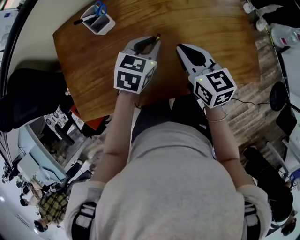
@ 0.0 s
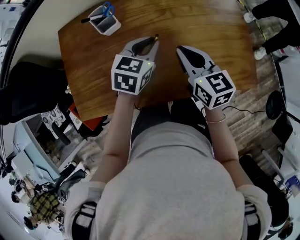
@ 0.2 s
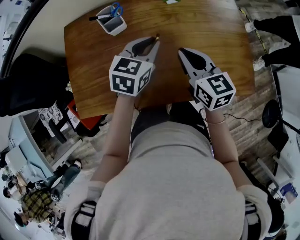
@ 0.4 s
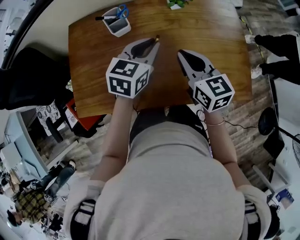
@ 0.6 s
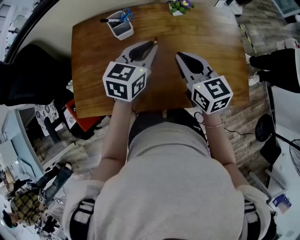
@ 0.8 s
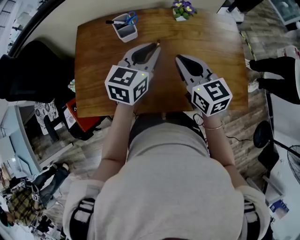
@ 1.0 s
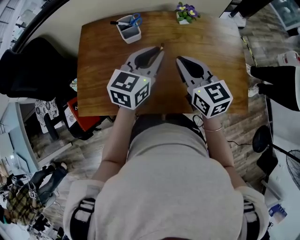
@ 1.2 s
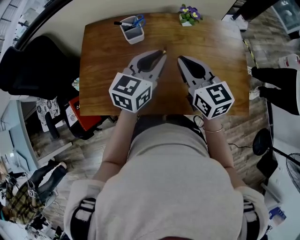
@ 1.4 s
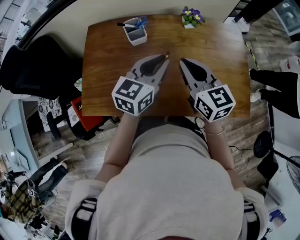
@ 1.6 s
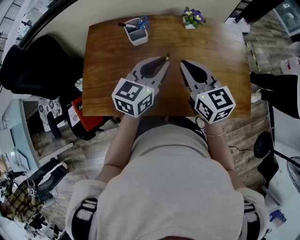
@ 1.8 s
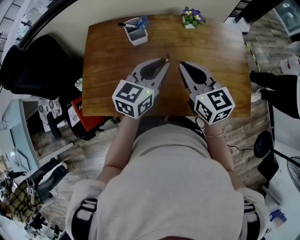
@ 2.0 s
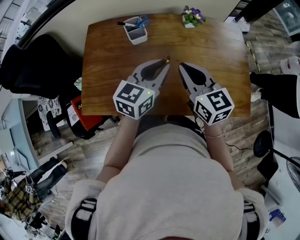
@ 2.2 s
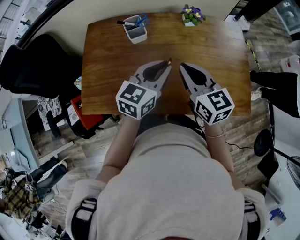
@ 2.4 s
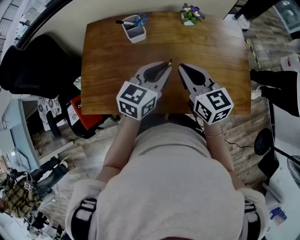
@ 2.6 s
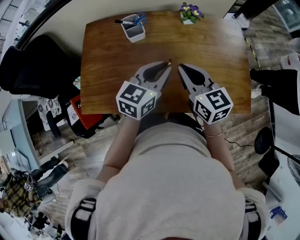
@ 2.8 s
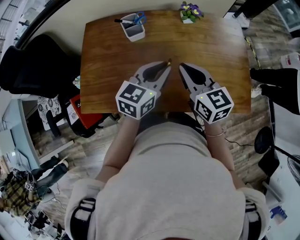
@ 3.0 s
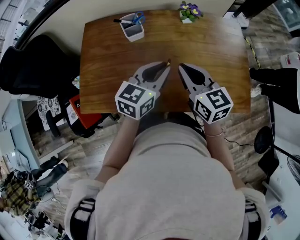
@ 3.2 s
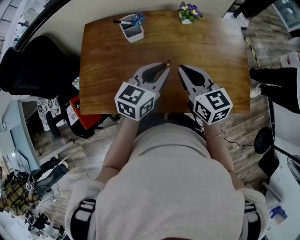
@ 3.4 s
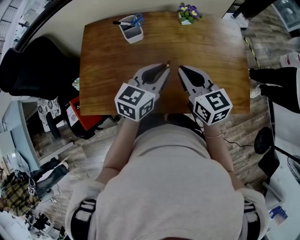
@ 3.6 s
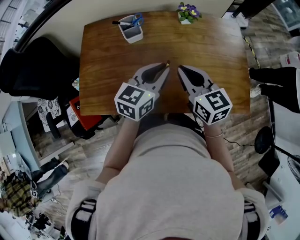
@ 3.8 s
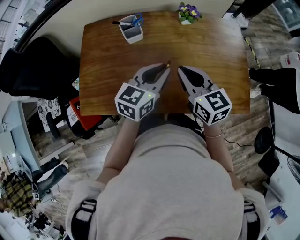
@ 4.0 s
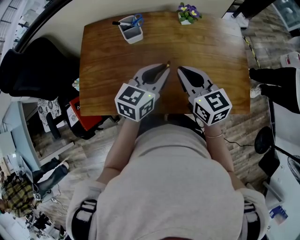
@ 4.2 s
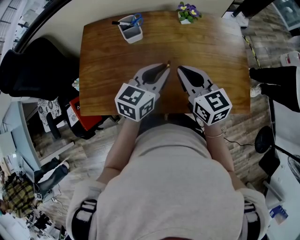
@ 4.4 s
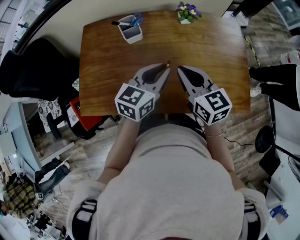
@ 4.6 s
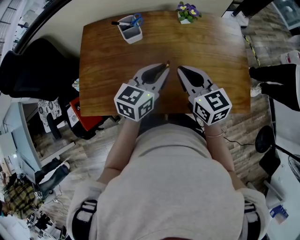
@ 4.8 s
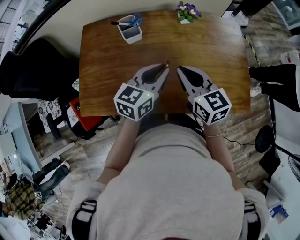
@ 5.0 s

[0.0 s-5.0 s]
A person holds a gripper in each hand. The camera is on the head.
0.0 to 1.6 s: The grippers both shift upward and to the left by approximately 15 cm. The left gripper turns by some 30 degrees.
1.6 to 3.4 s: The grippers move only a little.
3.4 to 5.0 s: Neither gripper changes place.

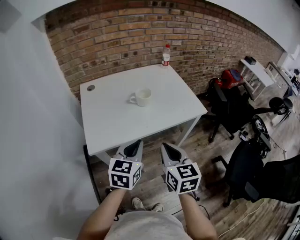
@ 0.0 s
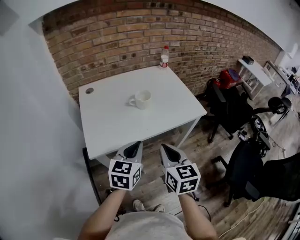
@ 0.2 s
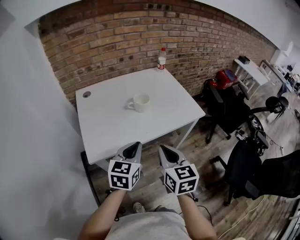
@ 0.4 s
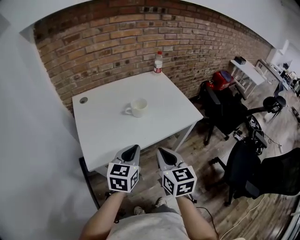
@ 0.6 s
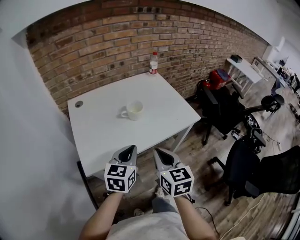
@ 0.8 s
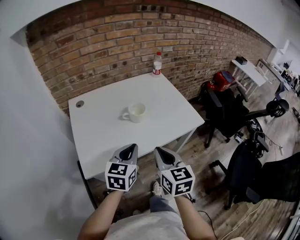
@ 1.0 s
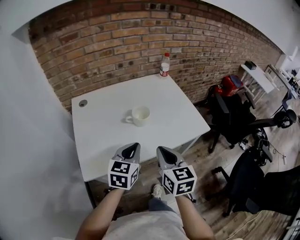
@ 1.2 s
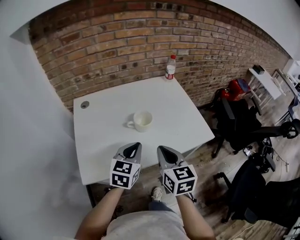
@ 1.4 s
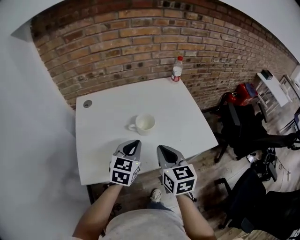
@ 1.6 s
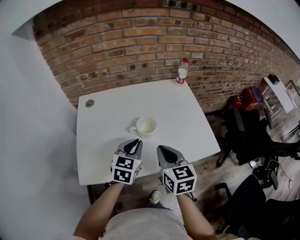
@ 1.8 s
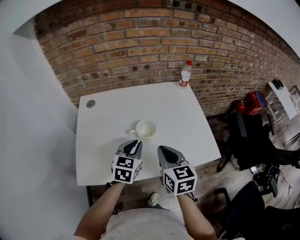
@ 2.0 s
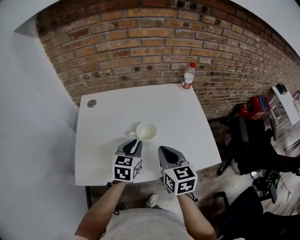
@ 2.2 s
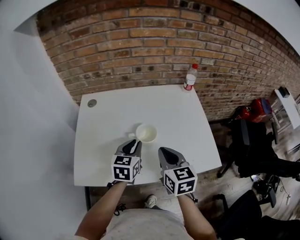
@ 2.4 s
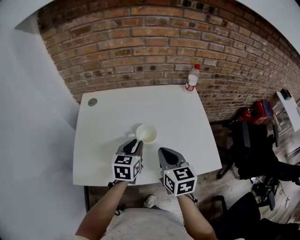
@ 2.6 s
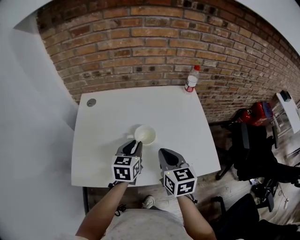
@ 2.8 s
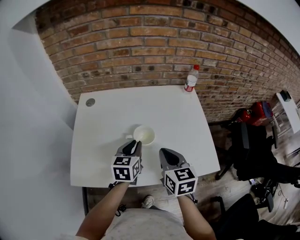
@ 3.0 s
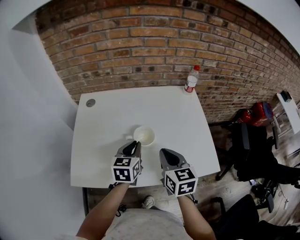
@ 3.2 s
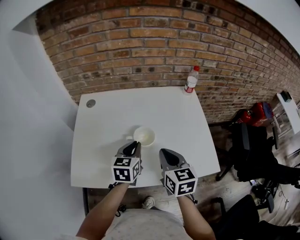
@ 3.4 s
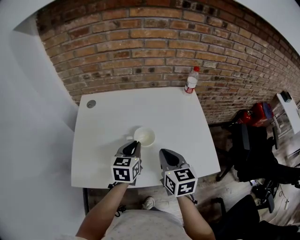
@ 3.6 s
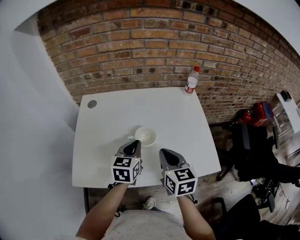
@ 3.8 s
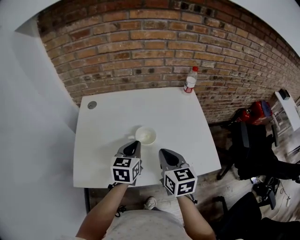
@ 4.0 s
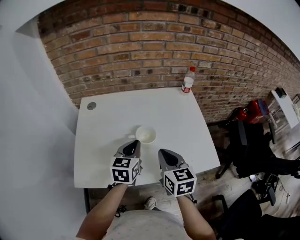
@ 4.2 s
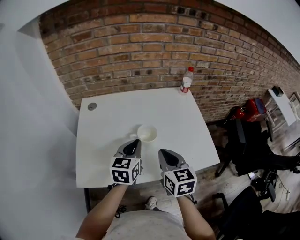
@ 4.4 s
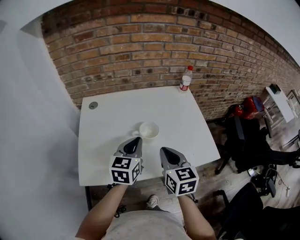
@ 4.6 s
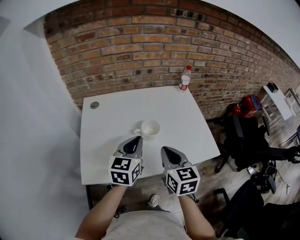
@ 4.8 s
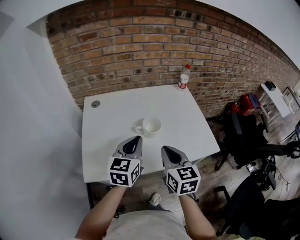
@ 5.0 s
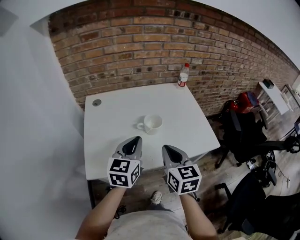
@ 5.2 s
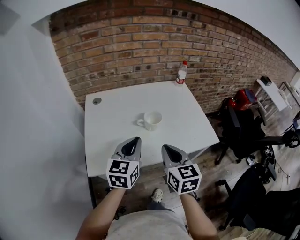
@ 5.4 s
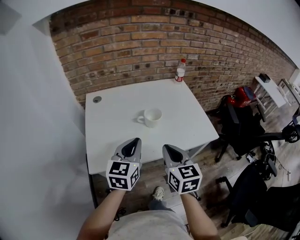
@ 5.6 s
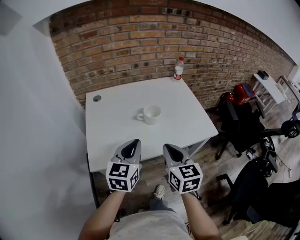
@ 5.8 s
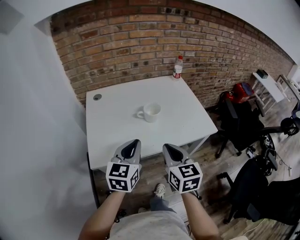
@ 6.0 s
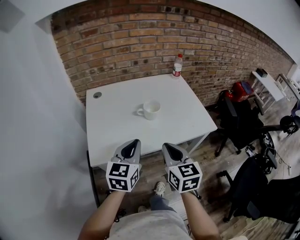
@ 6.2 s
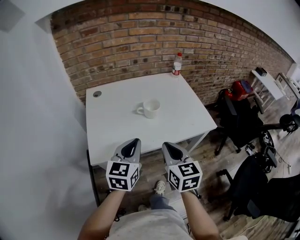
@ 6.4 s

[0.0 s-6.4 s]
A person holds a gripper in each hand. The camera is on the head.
0.0 to 1.6 s: Both grippers move forward, approximately 25 cm.
1.6 to 3.2 s: Both grippers move forward, approximately 10 cm. The left gripper turns by roughly 30 degrees.
3.2 to 4.8 s: The right gripper moves backward, to the left and upward, approximately 10 cm. Meanwhile the left gripper is displaced upward and backward by roughly 15 cm.
4.8 to 6.4 s: The grippers both shift backward by some 15 cm.

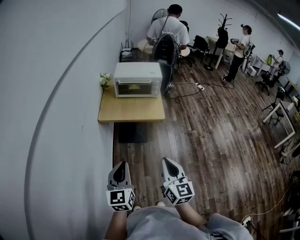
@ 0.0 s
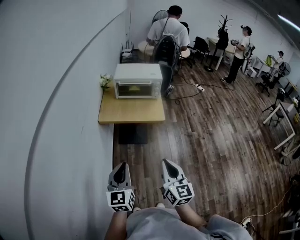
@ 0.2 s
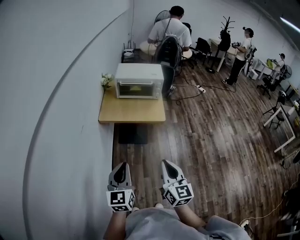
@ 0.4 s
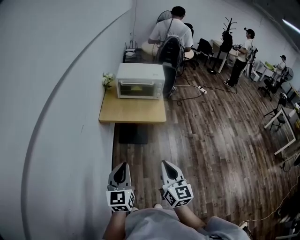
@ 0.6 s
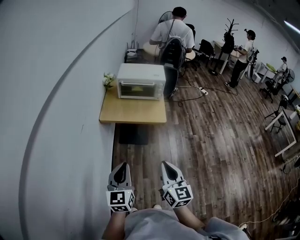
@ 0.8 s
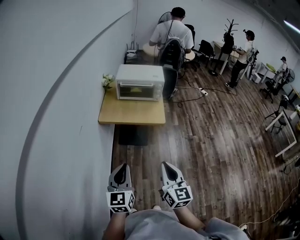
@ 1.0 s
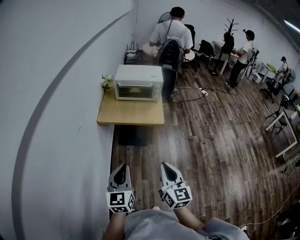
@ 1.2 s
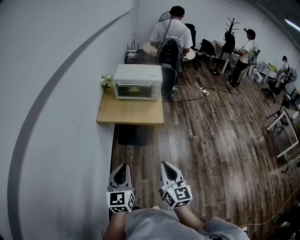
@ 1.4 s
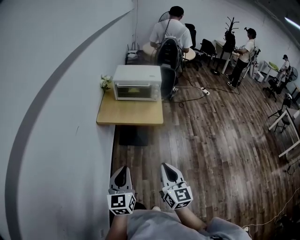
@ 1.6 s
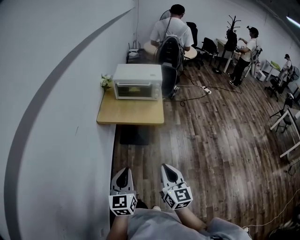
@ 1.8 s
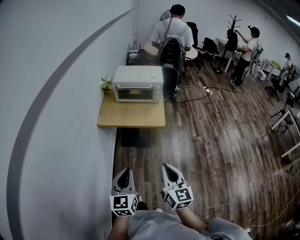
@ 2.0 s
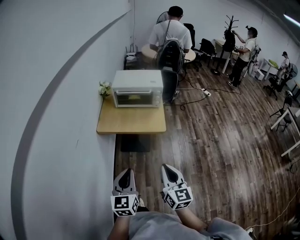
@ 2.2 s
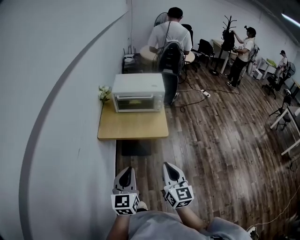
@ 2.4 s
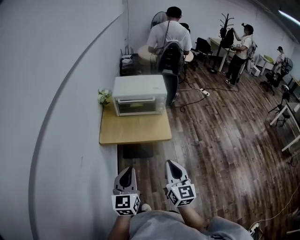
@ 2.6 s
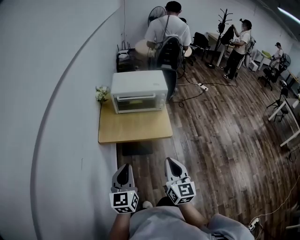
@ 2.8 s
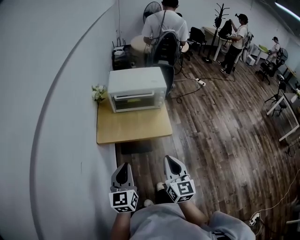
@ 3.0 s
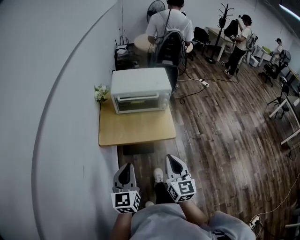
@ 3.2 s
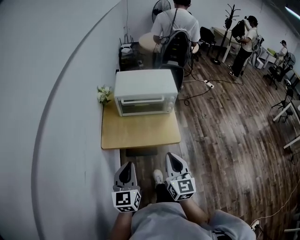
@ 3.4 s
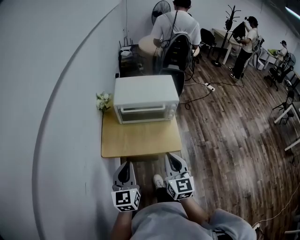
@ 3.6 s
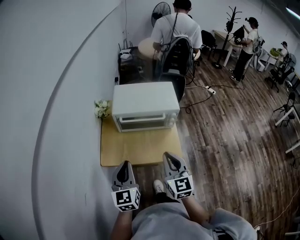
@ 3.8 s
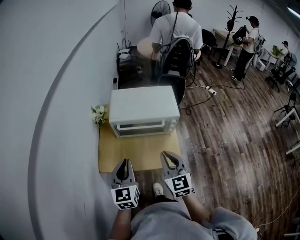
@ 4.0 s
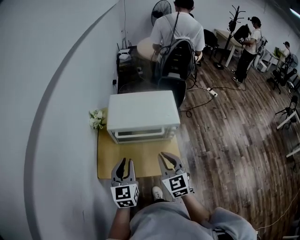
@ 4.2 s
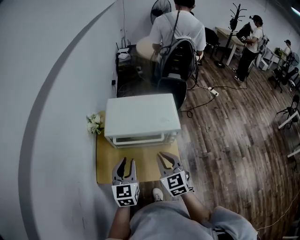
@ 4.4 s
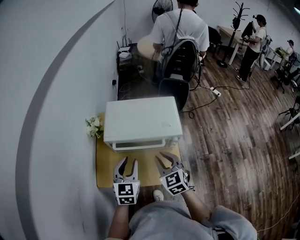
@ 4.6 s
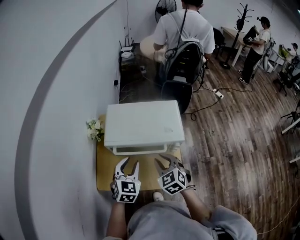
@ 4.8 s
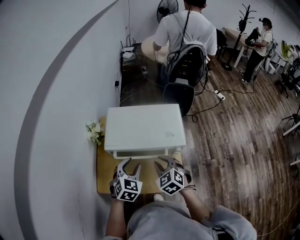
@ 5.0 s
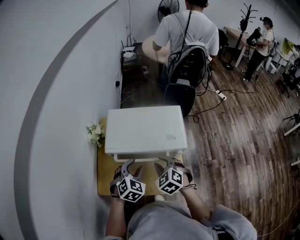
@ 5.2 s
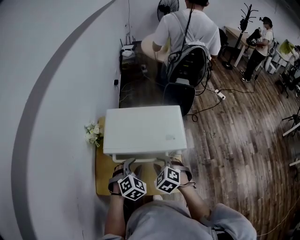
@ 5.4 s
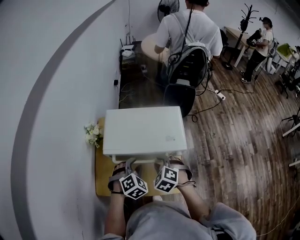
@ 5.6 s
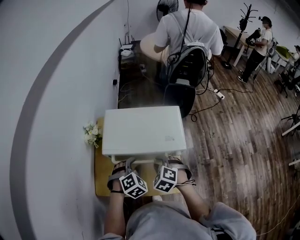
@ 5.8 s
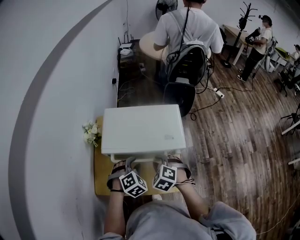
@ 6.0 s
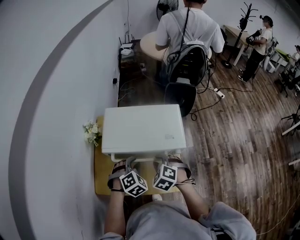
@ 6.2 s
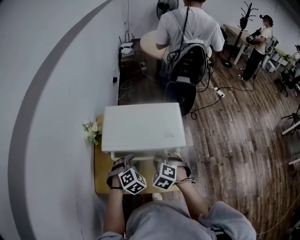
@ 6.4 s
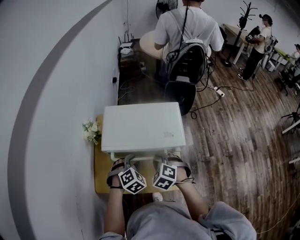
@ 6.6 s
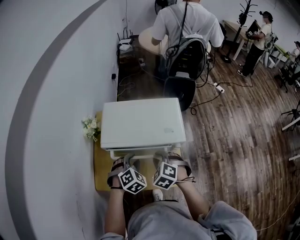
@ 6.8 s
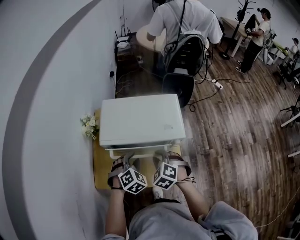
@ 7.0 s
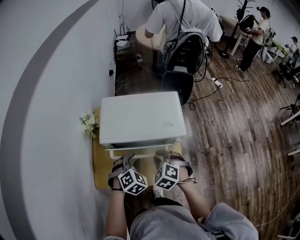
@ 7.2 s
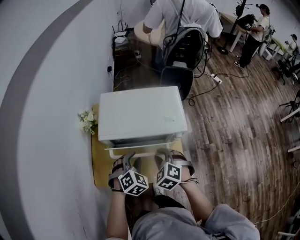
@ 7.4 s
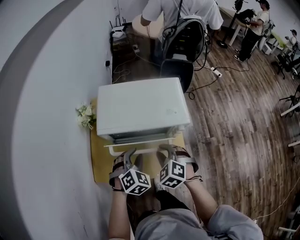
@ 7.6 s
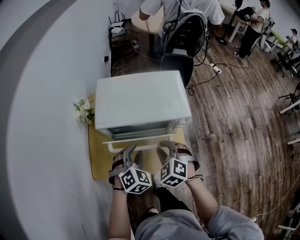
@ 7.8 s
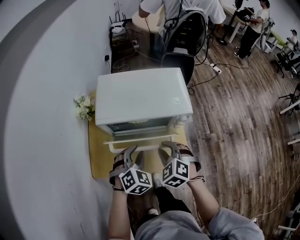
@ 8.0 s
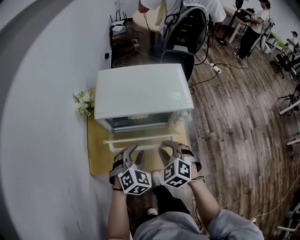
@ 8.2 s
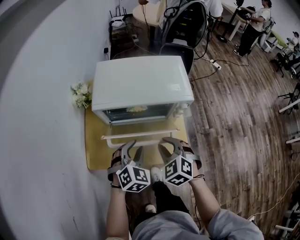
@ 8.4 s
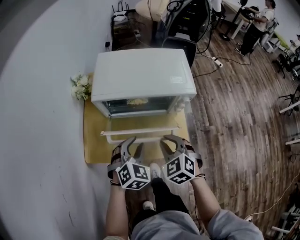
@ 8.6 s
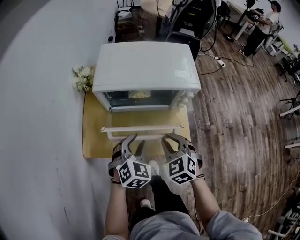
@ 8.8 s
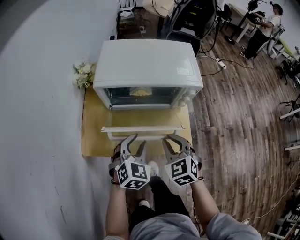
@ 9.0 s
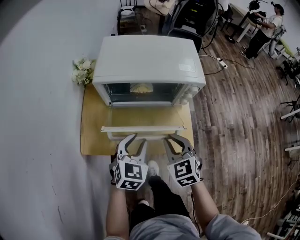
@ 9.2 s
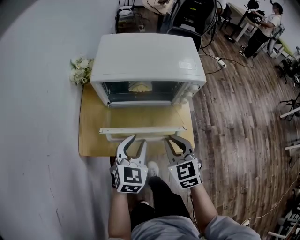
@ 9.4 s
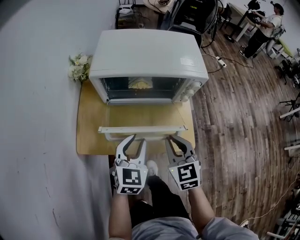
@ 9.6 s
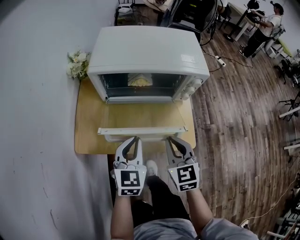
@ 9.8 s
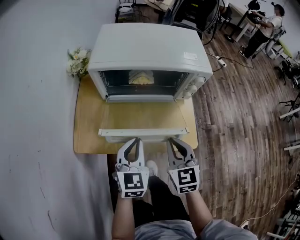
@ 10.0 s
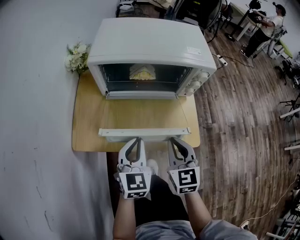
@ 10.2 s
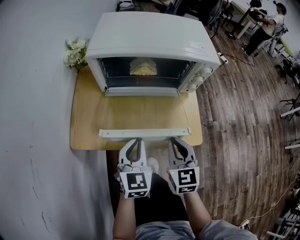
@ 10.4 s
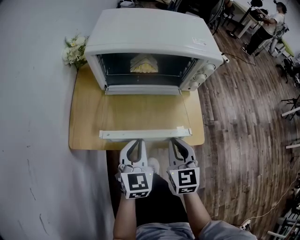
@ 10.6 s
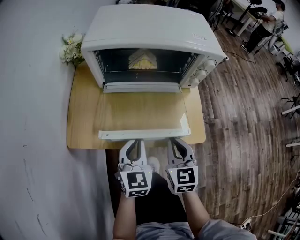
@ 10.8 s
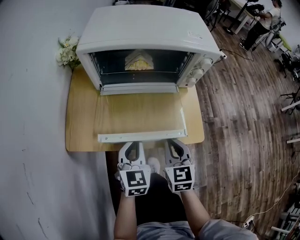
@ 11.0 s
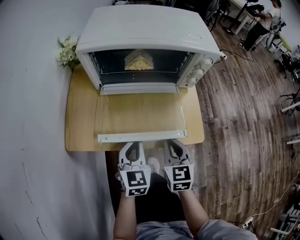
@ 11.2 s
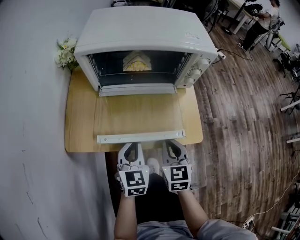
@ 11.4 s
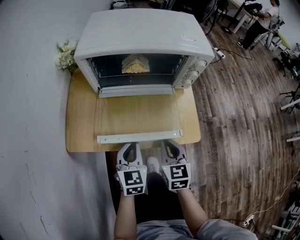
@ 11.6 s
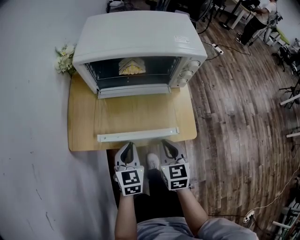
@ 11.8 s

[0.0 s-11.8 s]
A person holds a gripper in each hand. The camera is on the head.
0.0 to 1.4 s: The left gripper moves to the right, approximately 5 cm.
1.4 to 3.0 s: Both grippers travel together forward, about 20 cm.
3.0 to 4.4 s: The grippers both shift forward by roughly 35 cm. The right gripper rotates about 30 degrees.
4.4 to 6.0 s: The grippers both shift downward and forward by approximately 15 cm. The left gripper points its fingers about 40 degrees further downward, while the right gripper angles its fingers downward, by about 40 degrees, and opens its fingers.
6.0 to 7.4 s: There are only small adjustments of the grippers.
7.4 to 8.8 s: Both grippers travel together backward and downward, some 10 cm.
8.8 to 10.4 s: The grippers both shift downward by some 10 cm. The right gripper turns by approximately 30 degrees; the left gripper rotates some 30 degrees, and closes its fingers.
10.4 to 11.8 s: The left gripper heads downward, covering about 5 cm.
